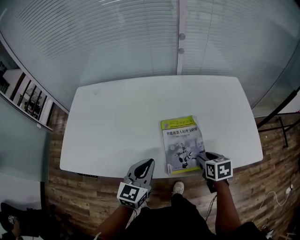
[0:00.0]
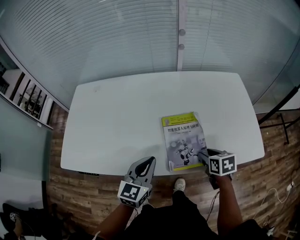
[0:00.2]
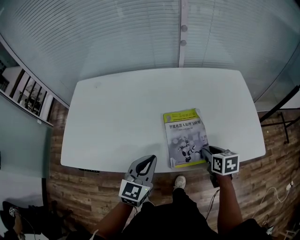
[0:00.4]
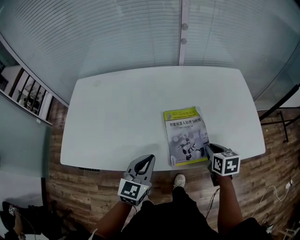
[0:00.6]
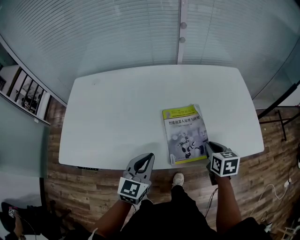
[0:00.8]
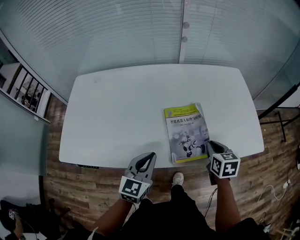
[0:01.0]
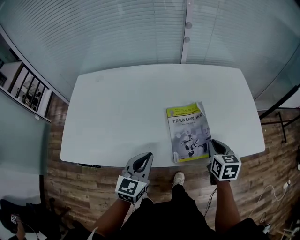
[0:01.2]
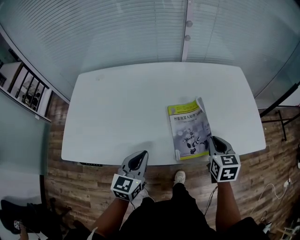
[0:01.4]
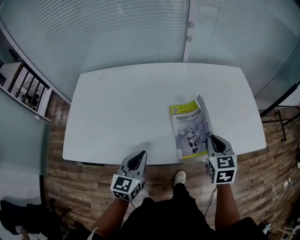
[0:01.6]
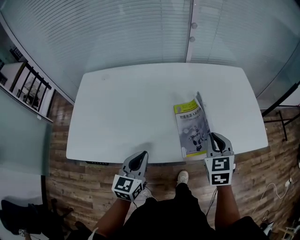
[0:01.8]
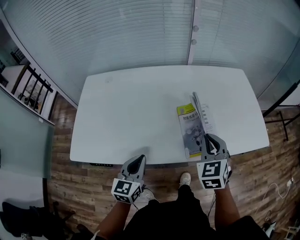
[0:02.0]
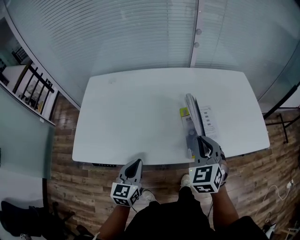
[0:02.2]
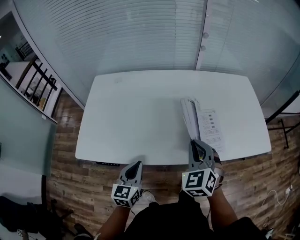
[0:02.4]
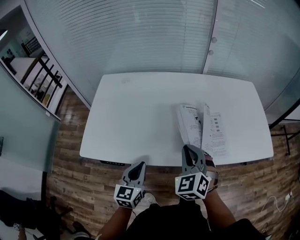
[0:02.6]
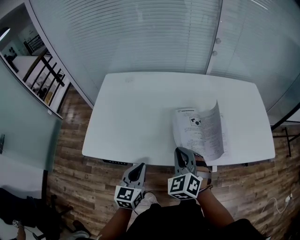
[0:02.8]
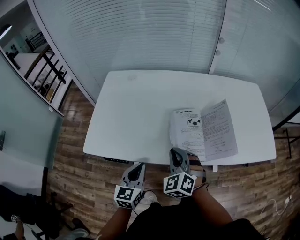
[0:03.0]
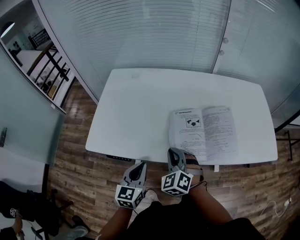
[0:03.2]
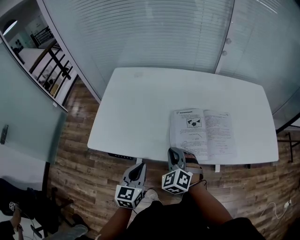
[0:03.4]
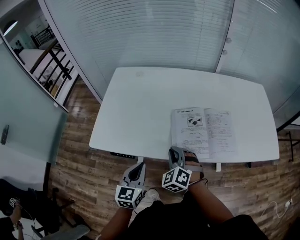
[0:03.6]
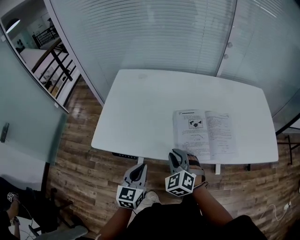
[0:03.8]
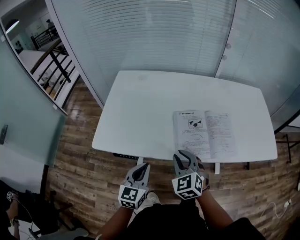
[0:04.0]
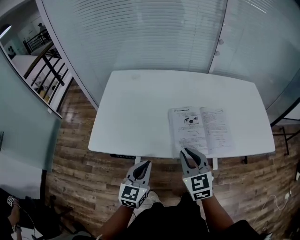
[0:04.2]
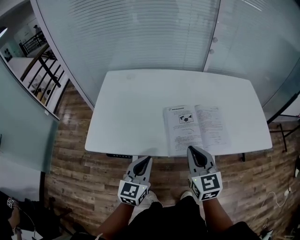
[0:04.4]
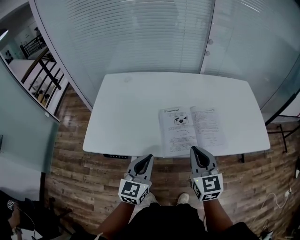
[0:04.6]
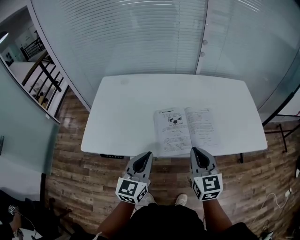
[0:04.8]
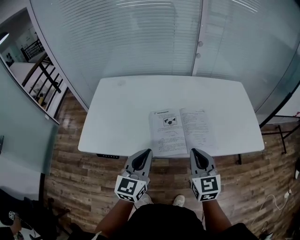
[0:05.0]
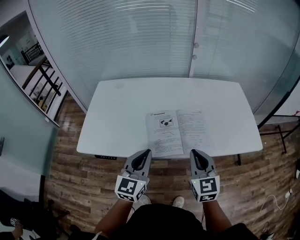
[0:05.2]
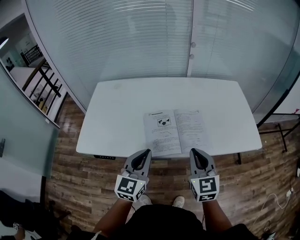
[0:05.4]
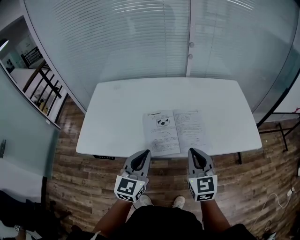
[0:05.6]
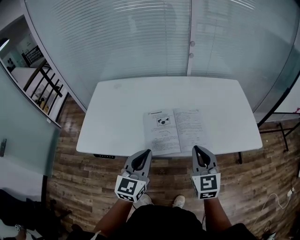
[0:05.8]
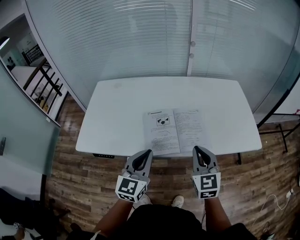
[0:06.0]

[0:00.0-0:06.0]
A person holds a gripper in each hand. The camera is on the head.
0:00.0 to 0:01.6: The left gripper heads to the left, covering roughly 10 cm. Meanwhile the right gripper travels upward by roughly 10 cm, rotates roughly 30 degrees, and closes up.
0:01.6 to 0:03.0: The right gripper shifts about 30 cm to the left, and twists roughly 40 degrees counterclockwise, seen from behind; the left gripper shifts approximately 15 cm to the left and backward.
0:03.0 to 0:04.4: The right gripper moves upward, approximately 10 cm, and rotates approximately 40 degrees. Meanwhile the left gripper shifts by roughly 5 cm.
0:04.4 to 0:06.0: The left gripper goes about 15 cm to the right and upward. Meanwhile the right gripper heads to the right, covering roughly 15 cm.

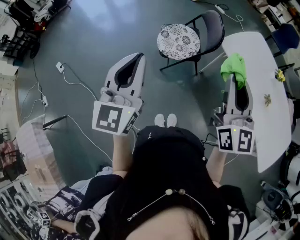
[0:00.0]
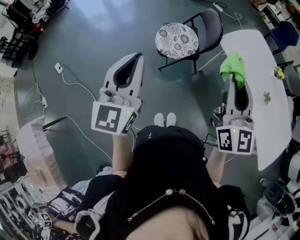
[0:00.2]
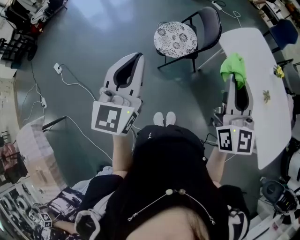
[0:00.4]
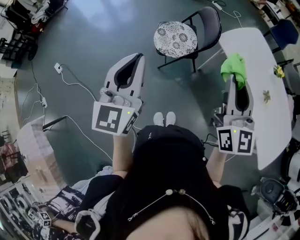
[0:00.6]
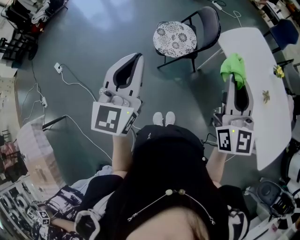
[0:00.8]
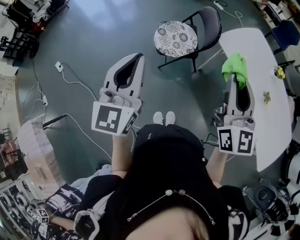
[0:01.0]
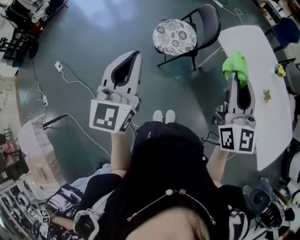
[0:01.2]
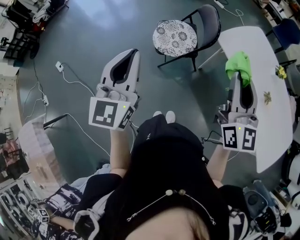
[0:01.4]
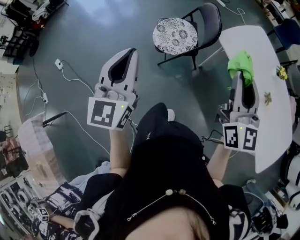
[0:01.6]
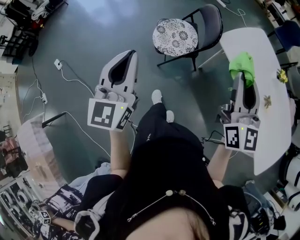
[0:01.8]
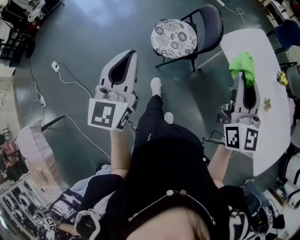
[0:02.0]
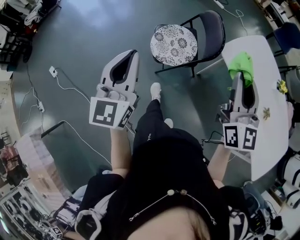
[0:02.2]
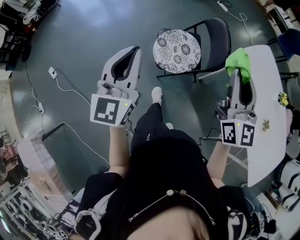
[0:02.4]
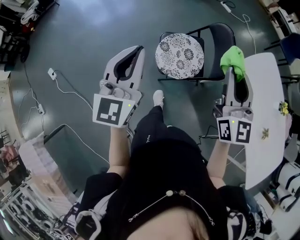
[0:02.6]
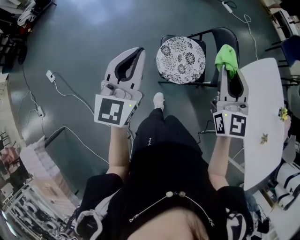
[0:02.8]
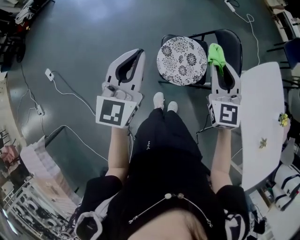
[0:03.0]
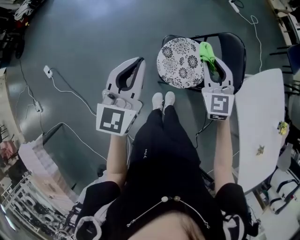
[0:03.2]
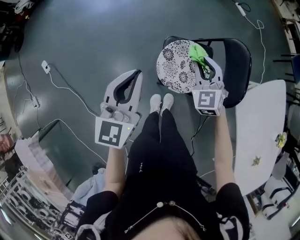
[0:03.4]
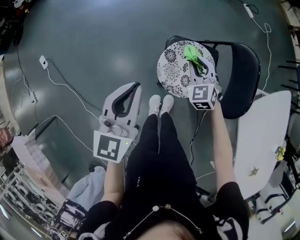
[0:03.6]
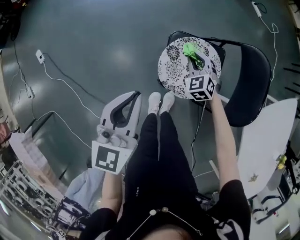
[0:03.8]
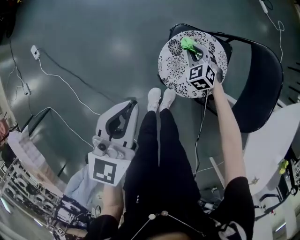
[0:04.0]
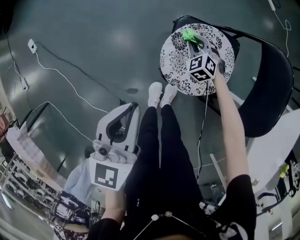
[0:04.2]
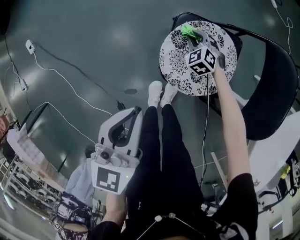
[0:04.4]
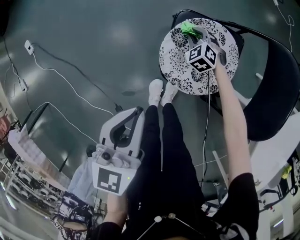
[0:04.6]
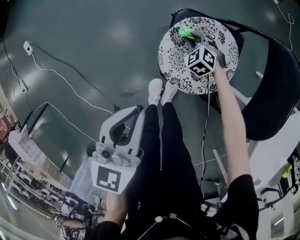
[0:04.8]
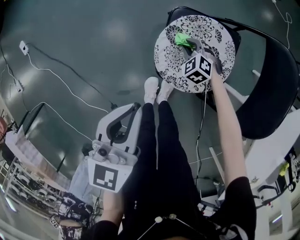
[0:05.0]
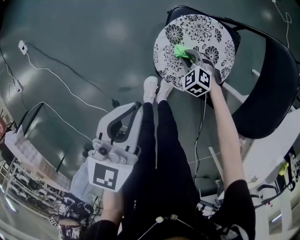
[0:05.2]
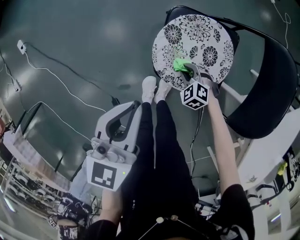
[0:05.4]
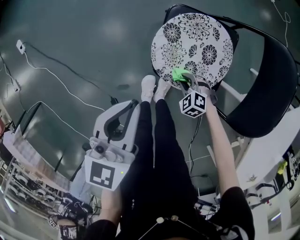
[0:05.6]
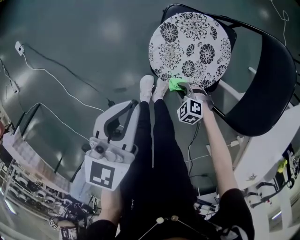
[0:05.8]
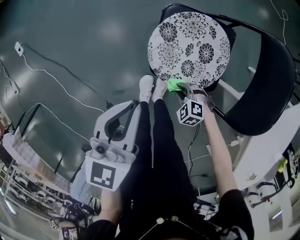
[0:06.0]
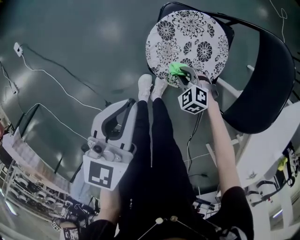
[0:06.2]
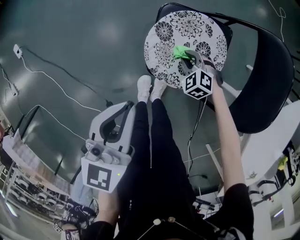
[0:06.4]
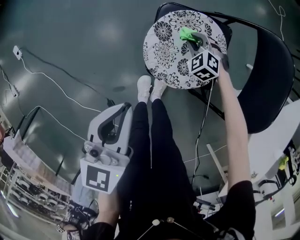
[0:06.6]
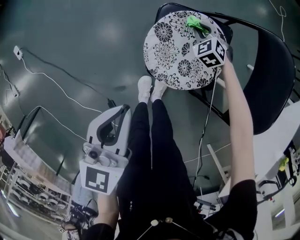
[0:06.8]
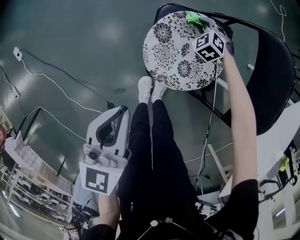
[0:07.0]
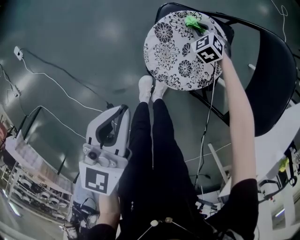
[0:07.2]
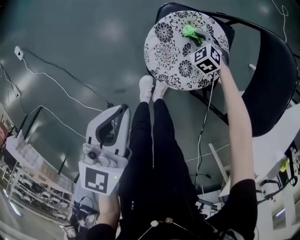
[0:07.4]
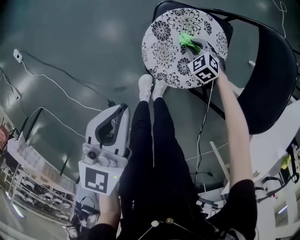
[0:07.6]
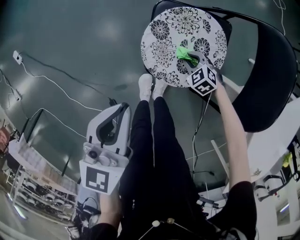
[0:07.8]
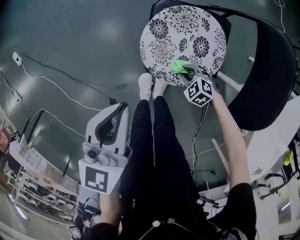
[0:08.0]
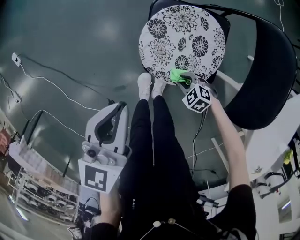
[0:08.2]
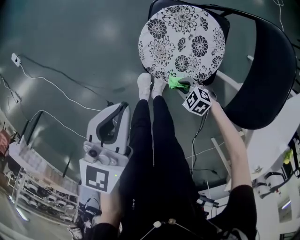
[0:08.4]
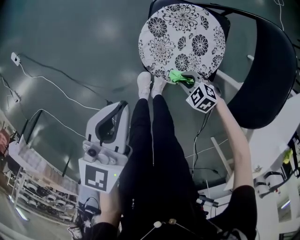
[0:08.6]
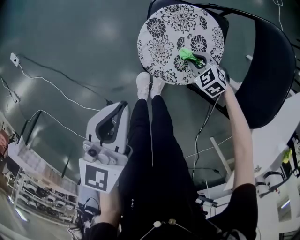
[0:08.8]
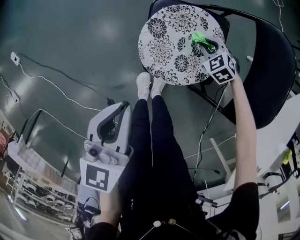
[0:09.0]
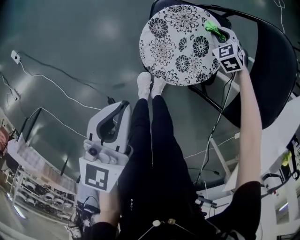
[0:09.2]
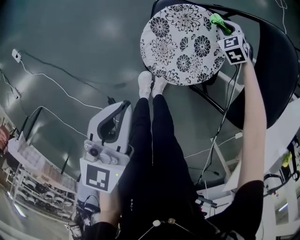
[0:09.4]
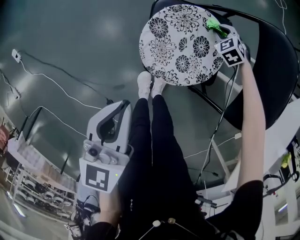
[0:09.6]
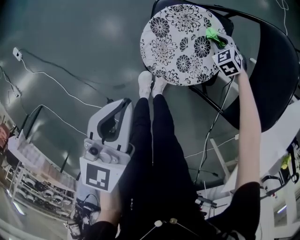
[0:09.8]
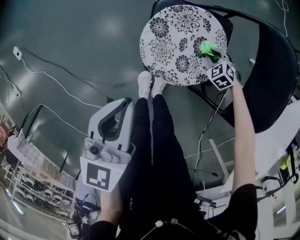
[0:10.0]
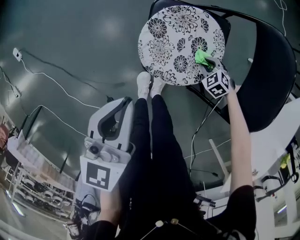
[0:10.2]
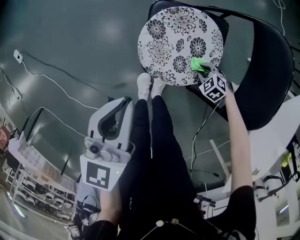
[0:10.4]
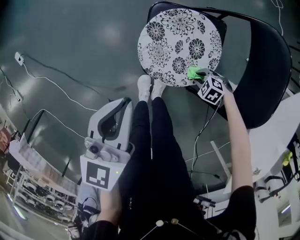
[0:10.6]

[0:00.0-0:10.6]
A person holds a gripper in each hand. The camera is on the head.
0:00.0 to 0:01.6: The left gripper moves roughly 5 cm. The right gripper travels to the right by approximately 5 cm.
0:01.6 to 0:03.0: The right gripper moves forward and to the left, approximately 40 cm, and rotates some 30 degrees; the left gripper heads forward, covering roughly 35 cm.
0:03.0 to 0:04.6: The right gripper travels downward by roughly 60 cm, and tips its fingers downward by roughly 40 degrees. The left gripper shifts roughly 30 cm downward, and rotates some 20 degrees.
0:04.6 to 0:06.0: The right gripper goes some 30 cm backward, and turns by some 30 degrees.
0:09.0 to 0:10.6: The right gripper ends up roughly 20 cm from where it was, and changes its angle by approximately 30 degrees.

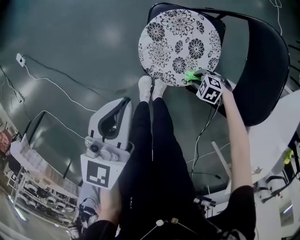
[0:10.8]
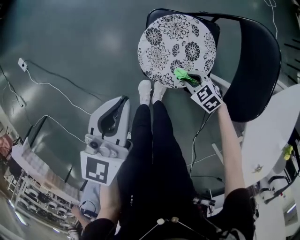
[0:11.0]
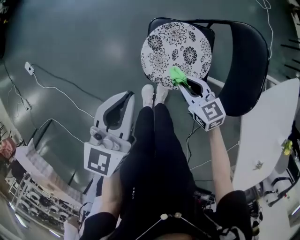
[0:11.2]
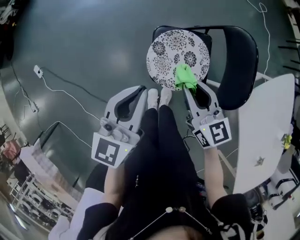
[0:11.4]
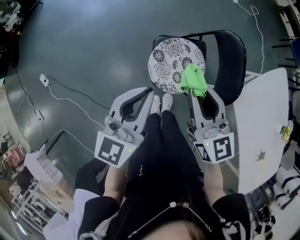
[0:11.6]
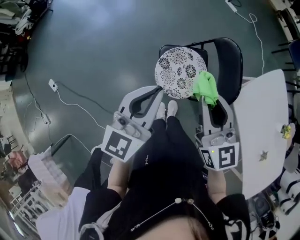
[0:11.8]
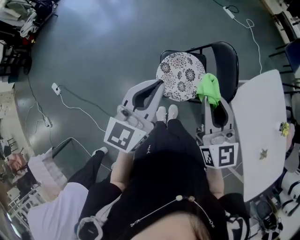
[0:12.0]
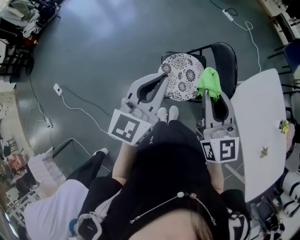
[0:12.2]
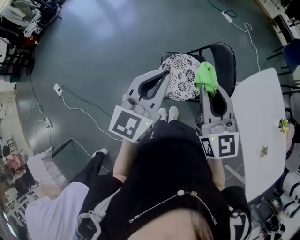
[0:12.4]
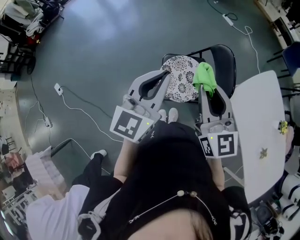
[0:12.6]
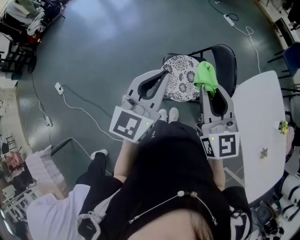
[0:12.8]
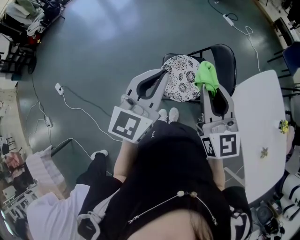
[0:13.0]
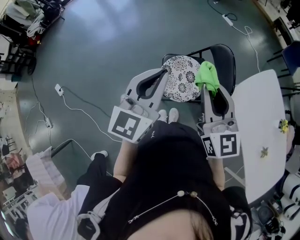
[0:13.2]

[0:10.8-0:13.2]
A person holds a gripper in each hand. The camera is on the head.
0:10.8 to 0:12.0: The right gripper travels upward by some 60 cm, and tilts its fingers approximately 70 degrees upward; the left gripper travels upward by roughly 30 cm, and changes its angle by about 20 degrees.
0:12.0 to 0:13.2: The left gripper moves approximately 5 cm.

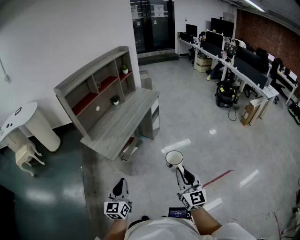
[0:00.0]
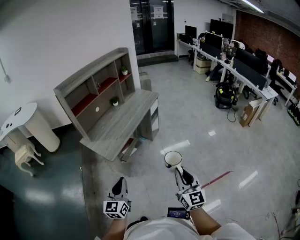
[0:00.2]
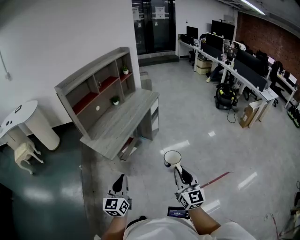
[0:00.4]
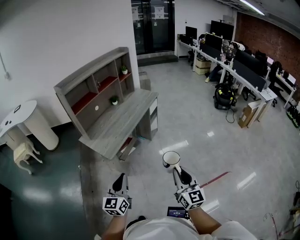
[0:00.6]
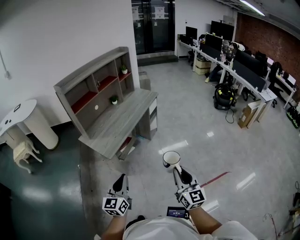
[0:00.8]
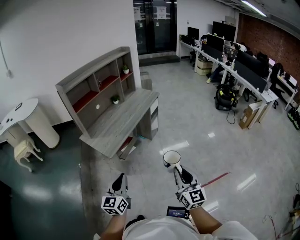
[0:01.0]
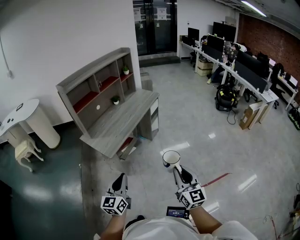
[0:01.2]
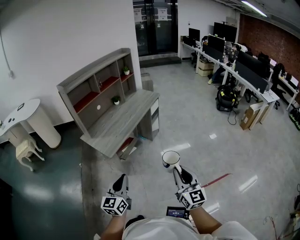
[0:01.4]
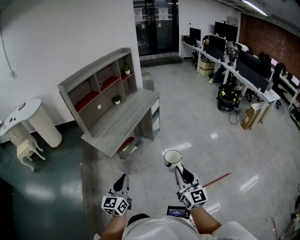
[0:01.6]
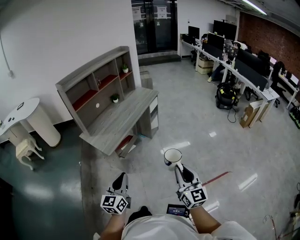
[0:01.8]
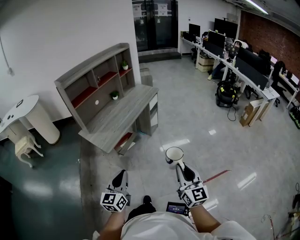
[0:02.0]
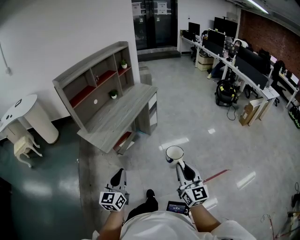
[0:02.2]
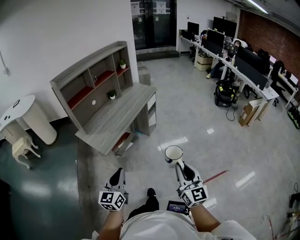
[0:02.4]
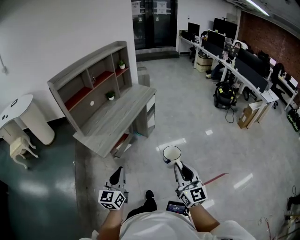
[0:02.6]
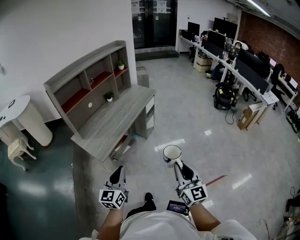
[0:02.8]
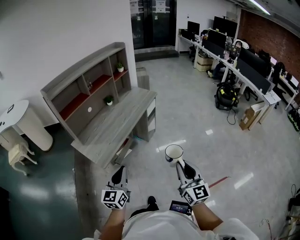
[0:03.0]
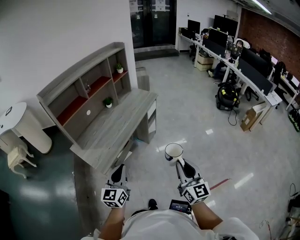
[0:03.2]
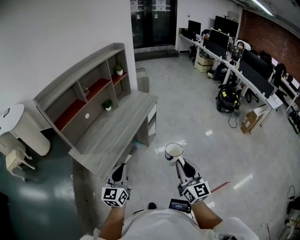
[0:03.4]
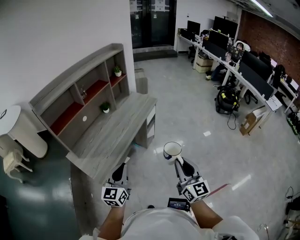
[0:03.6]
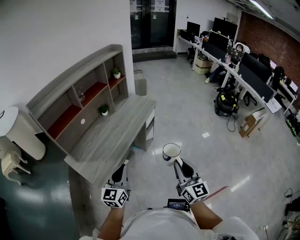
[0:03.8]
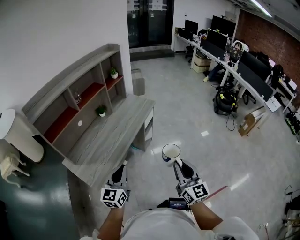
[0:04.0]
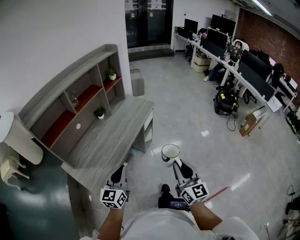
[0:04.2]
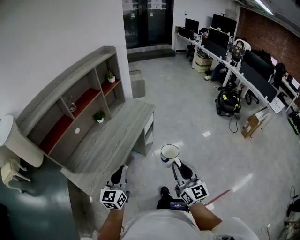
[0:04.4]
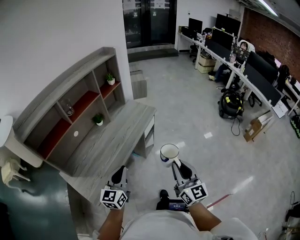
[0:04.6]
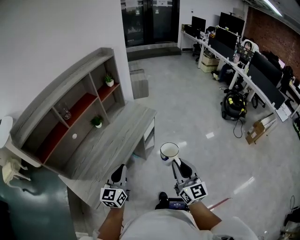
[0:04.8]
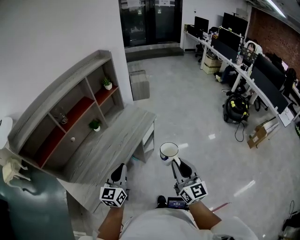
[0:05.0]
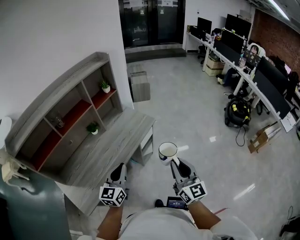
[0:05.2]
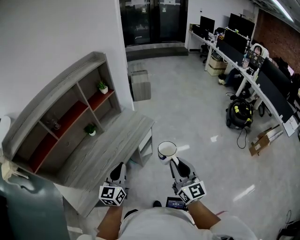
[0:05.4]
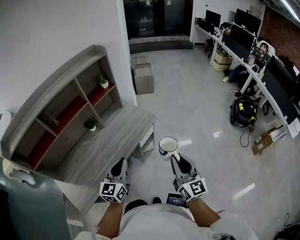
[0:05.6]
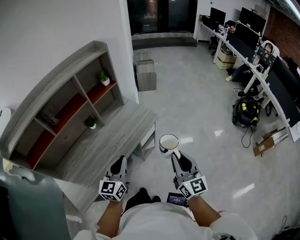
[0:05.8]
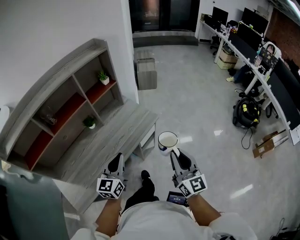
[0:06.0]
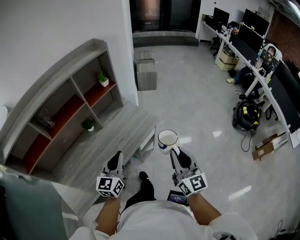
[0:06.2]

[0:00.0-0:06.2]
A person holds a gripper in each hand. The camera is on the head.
0:00.0 to 0:01.6: The left gripper shifts by approximately 5 cm.
0:01.6 to 0:03.2: Both grippers move forward, some 20 cm.
0:03.2 to 0:04.6: Both grippers travel together forward, some 25 cm.
0:04.6 to 0:06.2: The grippers both shift forward by some 30 cm.
